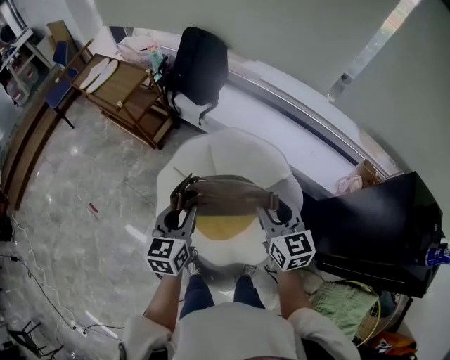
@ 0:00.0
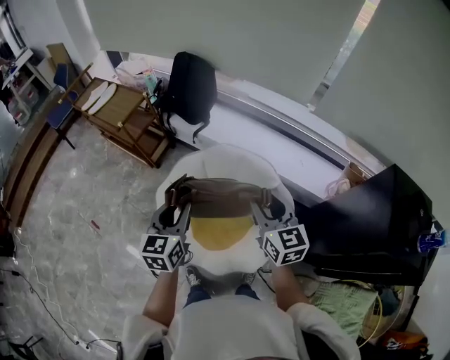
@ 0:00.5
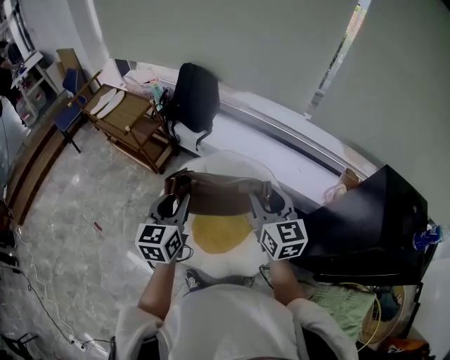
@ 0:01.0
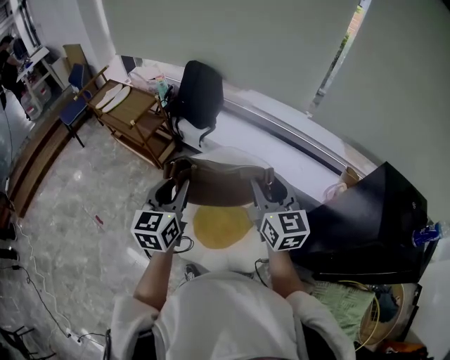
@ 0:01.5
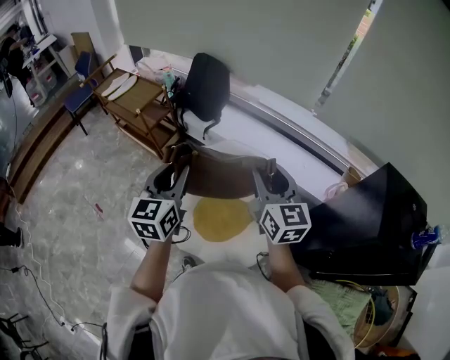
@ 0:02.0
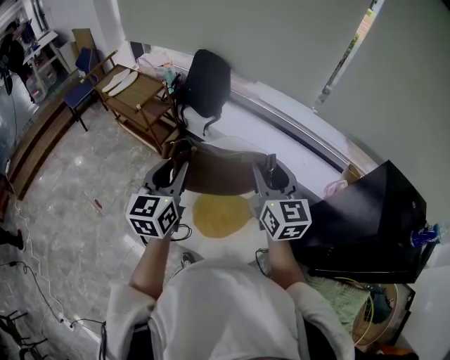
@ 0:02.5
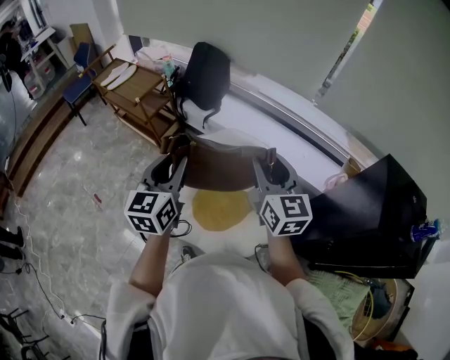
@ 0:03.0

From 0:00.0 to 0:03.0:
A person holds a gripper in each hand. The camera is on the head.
From 0:00.0 to 0:01.5: Both grippers travel together upward, about 15 cm.
From 0:01.5 to 0:03.0: The grippers make only small movements.

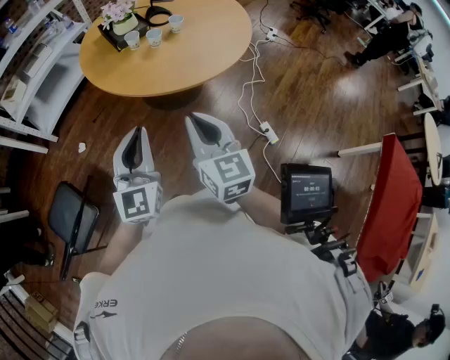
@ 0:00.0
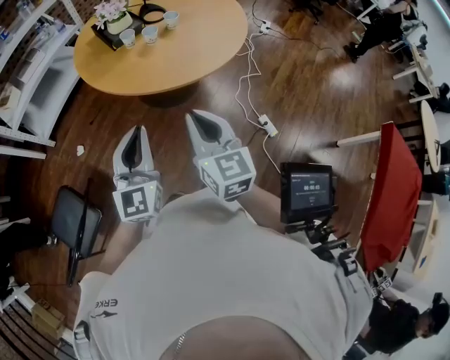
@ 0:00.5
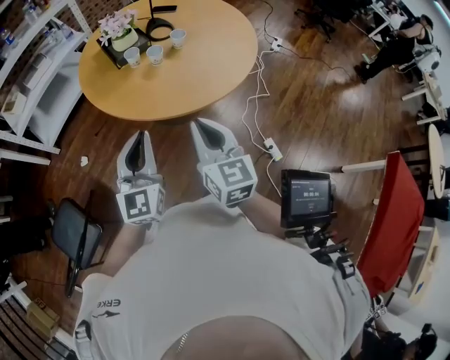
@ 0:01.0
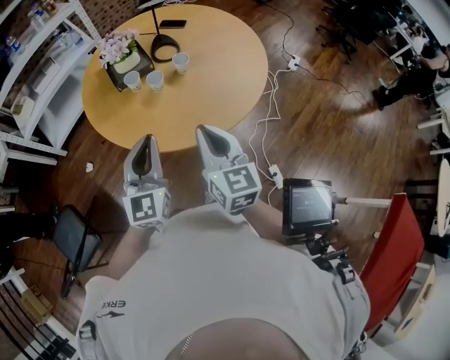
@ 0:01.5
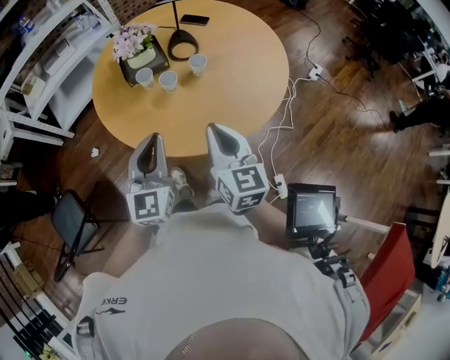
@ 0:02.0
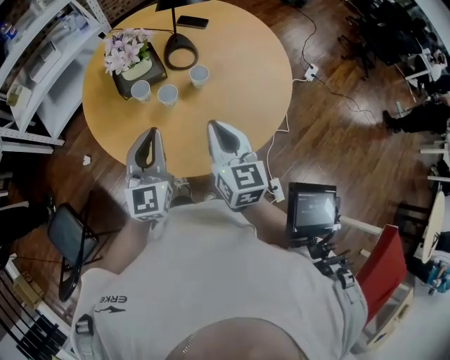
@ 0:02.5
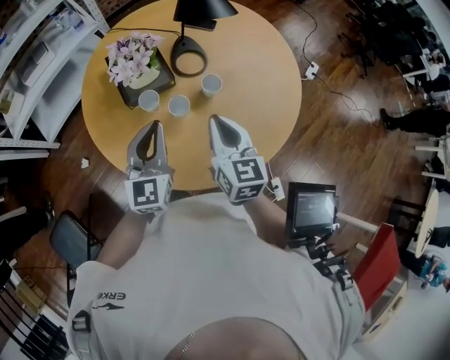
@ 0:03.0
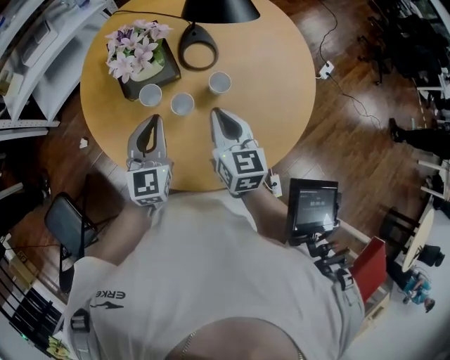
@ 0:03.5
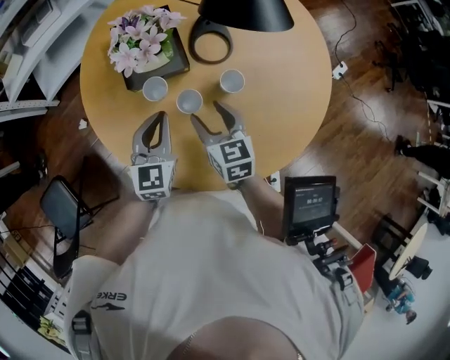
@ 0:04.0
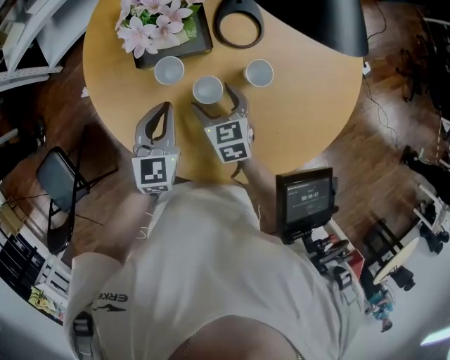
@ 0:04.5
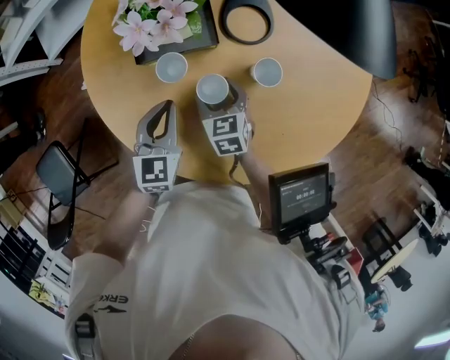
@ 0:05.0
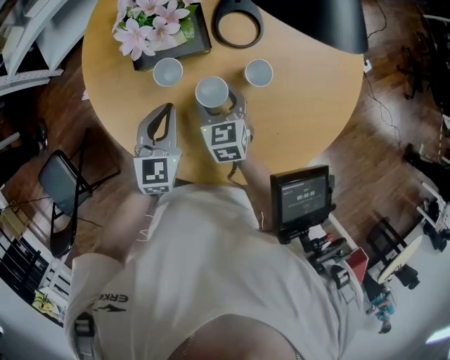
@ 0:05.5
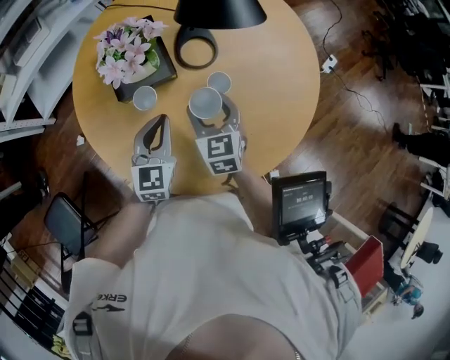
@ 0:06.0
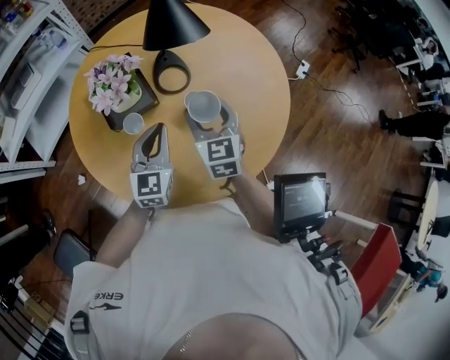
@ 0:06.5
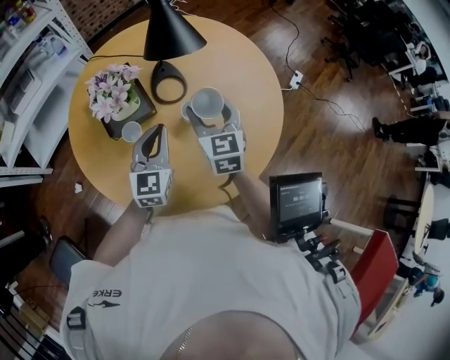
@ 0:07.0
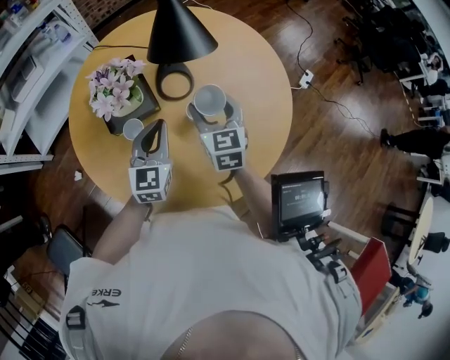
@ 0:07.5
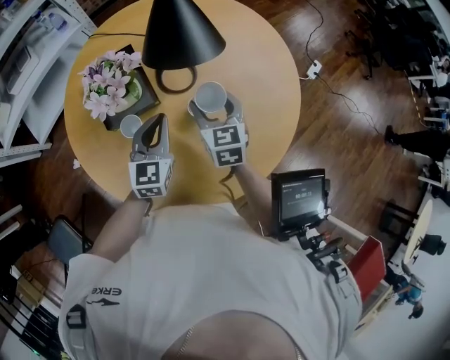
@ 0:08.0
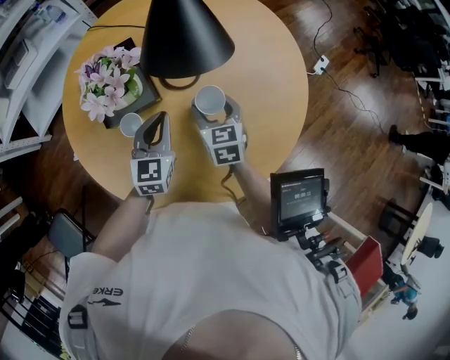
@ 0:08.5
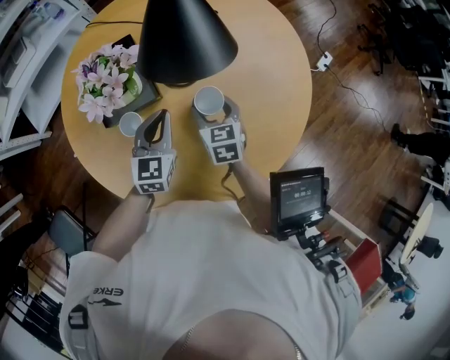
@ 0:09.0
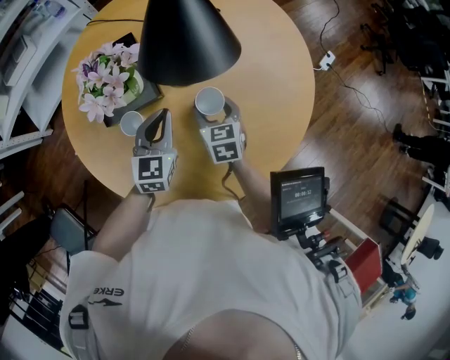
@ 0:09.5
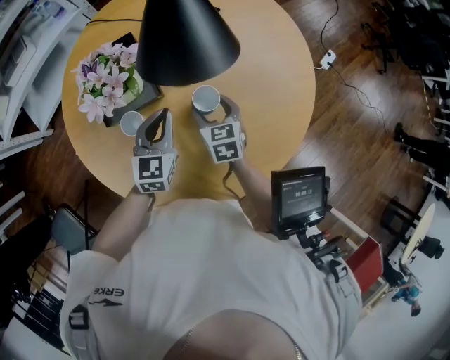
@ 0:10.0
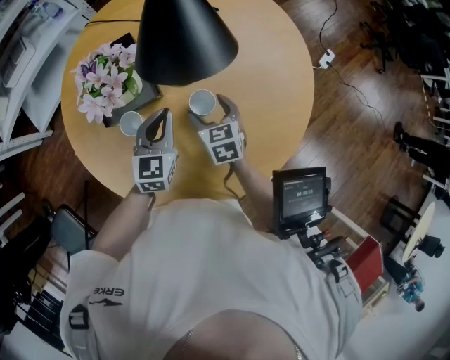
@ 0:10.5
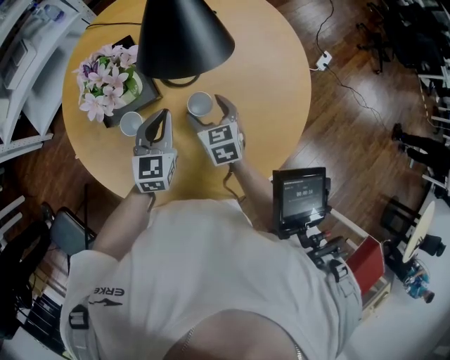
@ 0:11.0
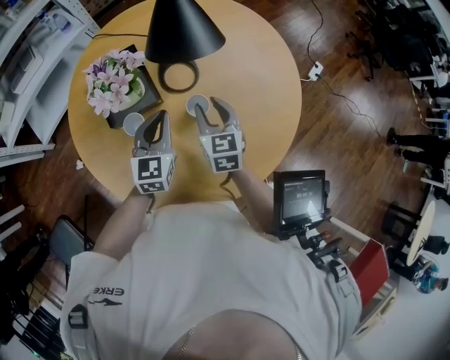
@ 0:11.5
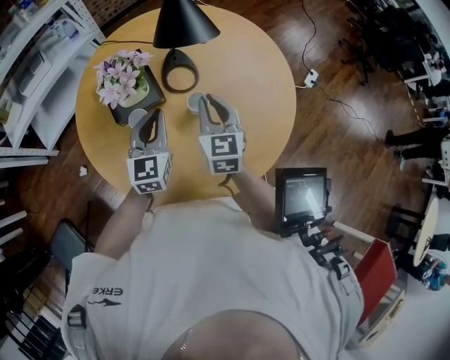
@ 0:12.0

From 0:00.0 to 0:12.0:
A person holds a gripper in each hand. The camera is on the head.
From 0:00.0 to 0:02.0: Both grippers travel together forward and to the right, roughly 30 cm.
From 0:02.0 to 0:04.0: The grippers both shift forward and downward by some 30 cm. The right gripper changes its angle by roughly 30 degrees, and opens up.
From 0:04.0 to 0:06.0: The right gripper moves approximately 15 cm downward and comes back.
From 0:06.0 to 0:08.0: The right gripper travels forward and to the right by some 10 cm, and moves approximately 10 cm upward and comes back. Meanwhile the left gripper shifts about 5 cm forward, and moves some 10 cm upward and comes back.
From 0:08.0 to 0:10.0: The right gripper shifts roughly 10 cm downward.
From 0:10.0 to 0:12.0: The left gripper travels upward by approximately 10 cm. The right gripper travels upward by approximately 20 cm, changes its angle by approximately 30 degrees, and closes up.

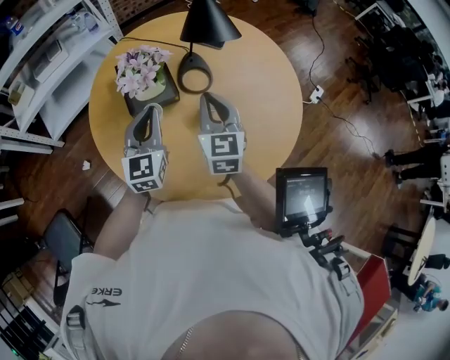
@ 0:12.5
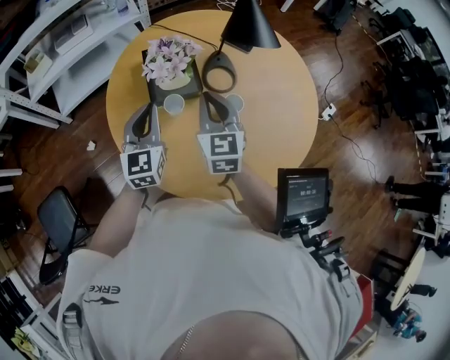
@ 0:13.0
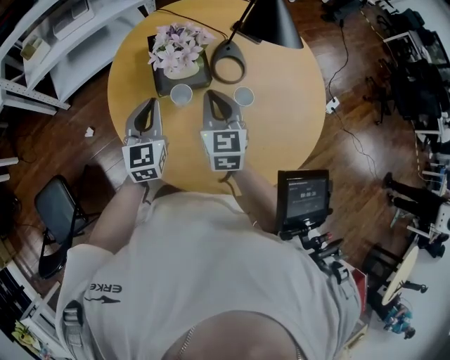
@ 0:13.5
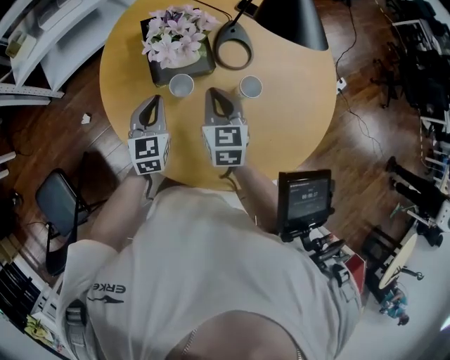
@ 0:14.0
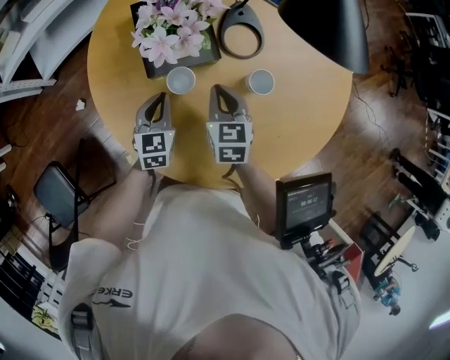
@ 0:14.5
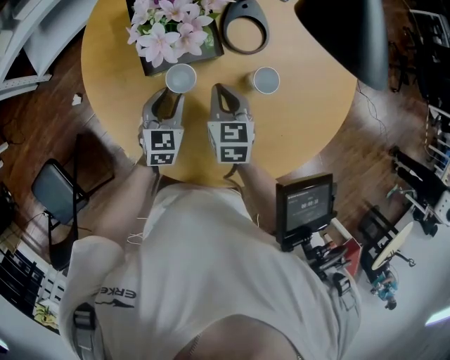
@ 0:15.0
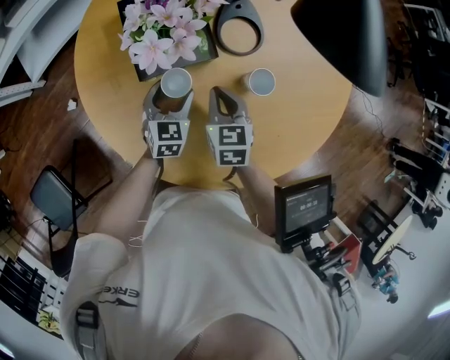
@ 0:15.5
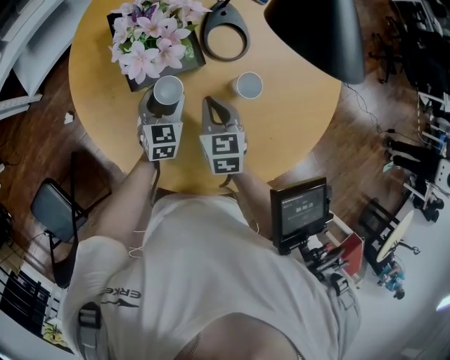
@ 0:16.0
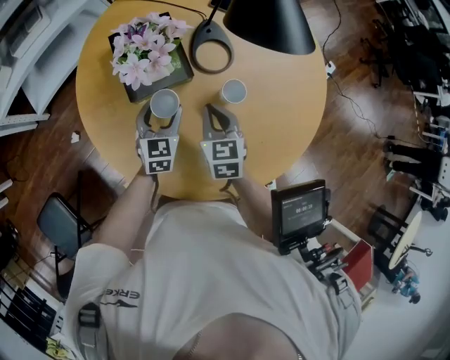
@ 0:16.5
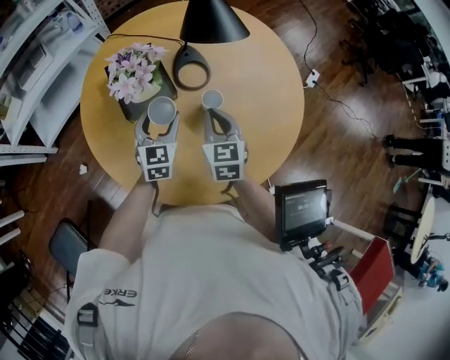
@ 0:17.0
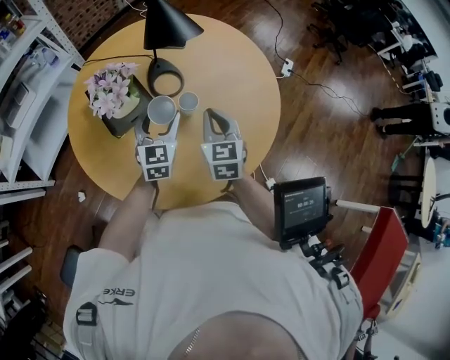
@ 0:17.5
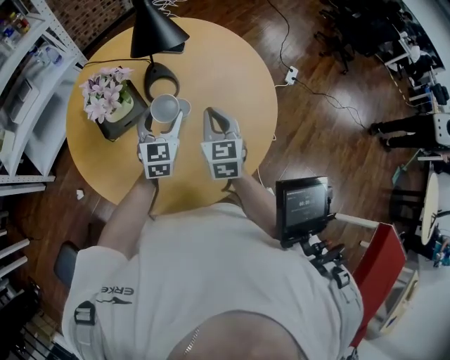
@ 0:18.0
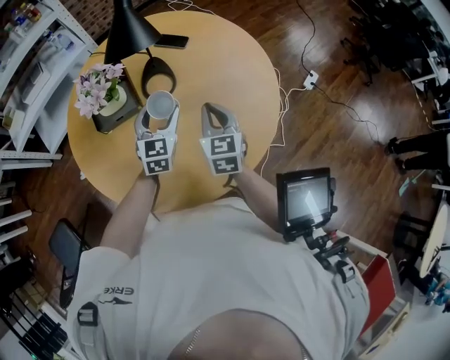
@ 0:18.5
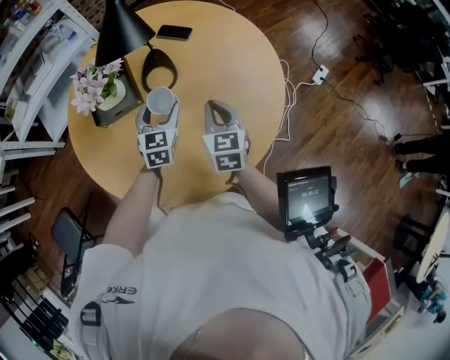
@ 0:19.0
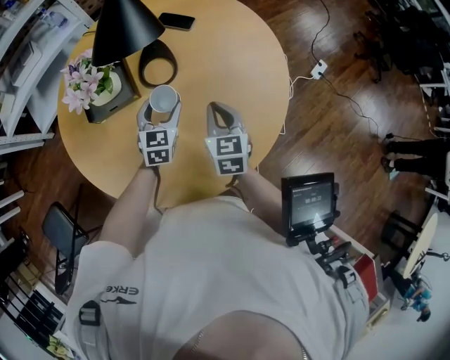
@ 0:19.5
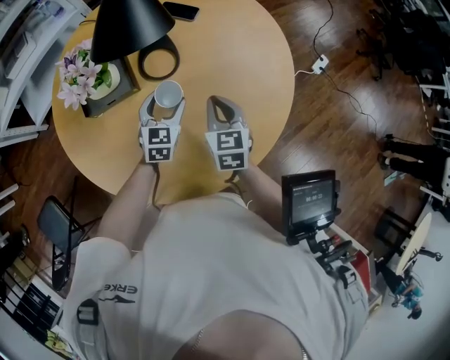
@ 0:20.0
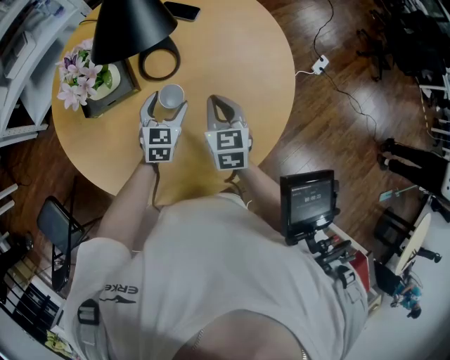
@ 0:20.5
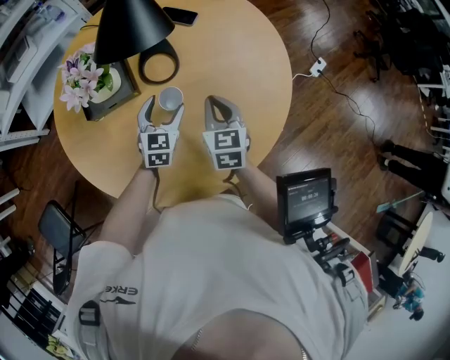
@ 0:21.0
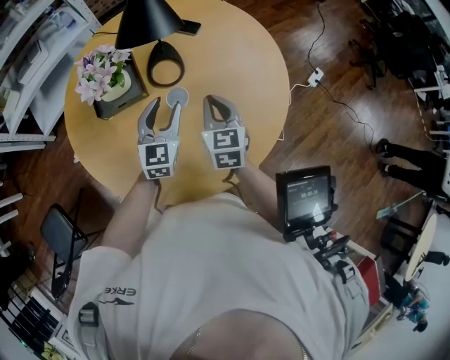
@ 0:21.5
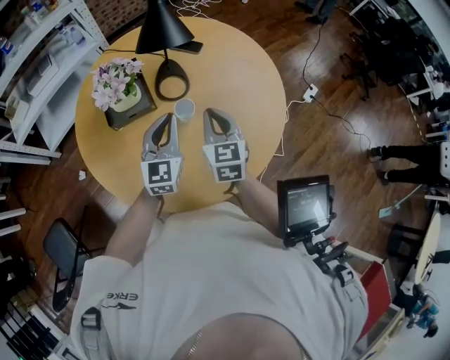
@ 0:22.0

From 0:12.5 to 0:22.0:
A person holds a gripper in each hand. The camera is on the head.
From 0:12.5 to 0:14.5: The two grippers go roughly 20 cm downward. The right gripper changes its angle by about 30 degrees; the left gripper changes its angle by about 30 degrees.
From 0:14.5 to 0:16.5: The left gripper goes some 5 cm to the right, and opens its fingers.
From 0:16.5 to 0:18.0: The two grippers go some 20 cm to the right and upward.
From 0:18.0 to 0:20.0: The left gripper is displaced downward by roughly 15 cm; the right gripper shifts approximately 10 cm downward and forward.
From 0:20.0 to 0:22.0: The left gripper travels upward and backward by approximately 20 cm, swivels about 20 degrees, and closes up. The right gripper goes some 10 cm upward and backward.

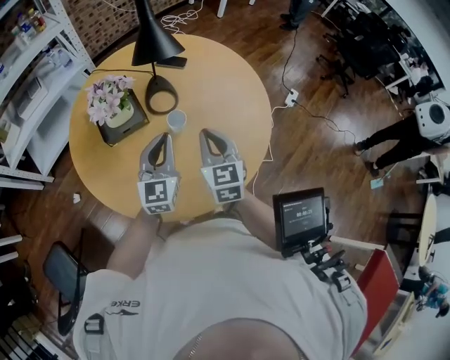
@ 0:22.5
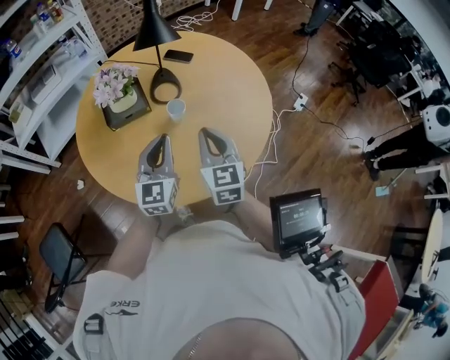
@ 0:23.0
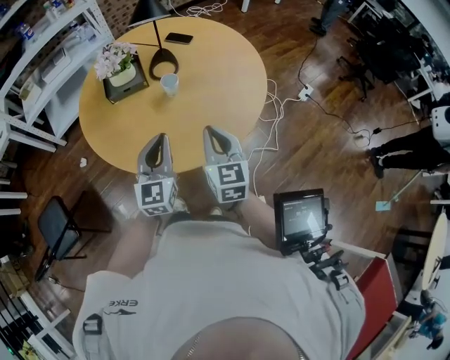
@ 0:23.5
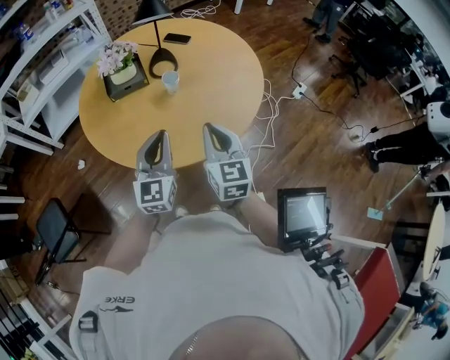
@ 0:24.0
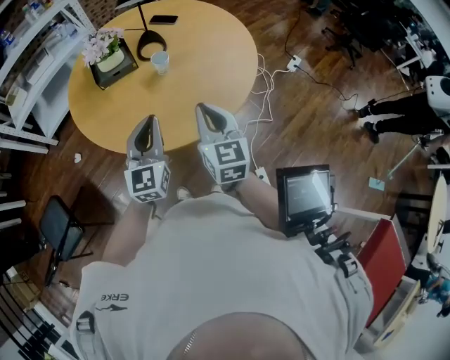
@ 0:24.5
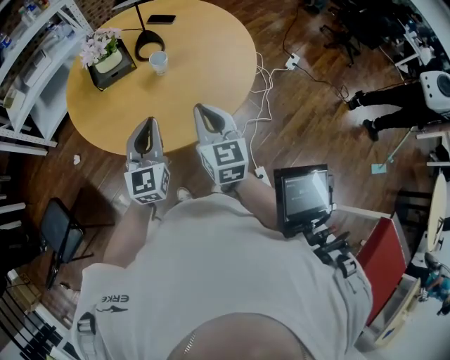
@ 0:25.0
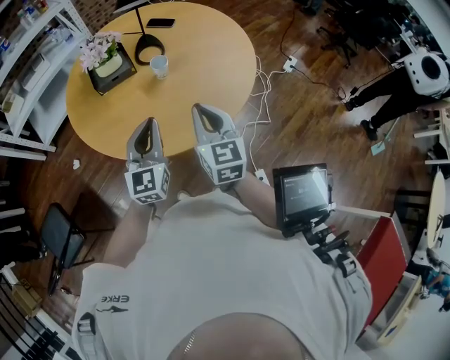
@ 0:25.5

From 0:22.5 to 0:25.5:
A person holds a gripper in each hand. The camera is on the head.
From 0:22.5 to 0:24.0: The grippers both shift backward by approximately 20 cm.
From 0:24.0 to 0:25.5: The grippers stay close to where they were, moving slightly.
